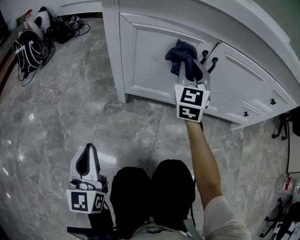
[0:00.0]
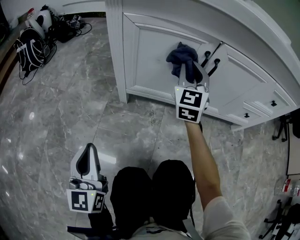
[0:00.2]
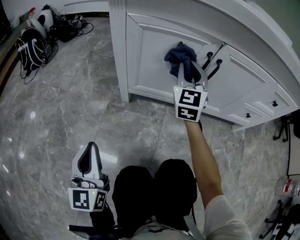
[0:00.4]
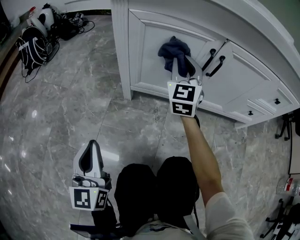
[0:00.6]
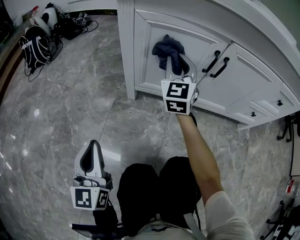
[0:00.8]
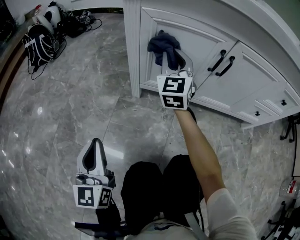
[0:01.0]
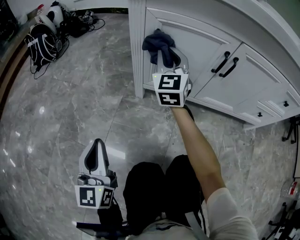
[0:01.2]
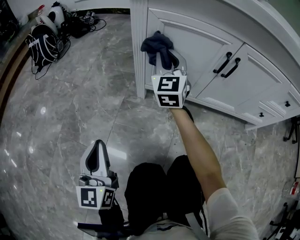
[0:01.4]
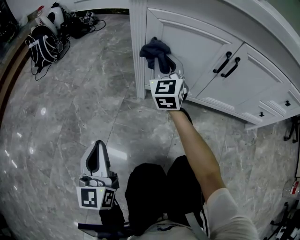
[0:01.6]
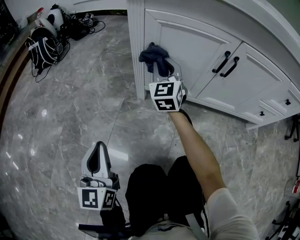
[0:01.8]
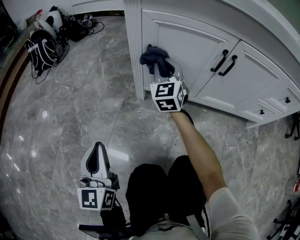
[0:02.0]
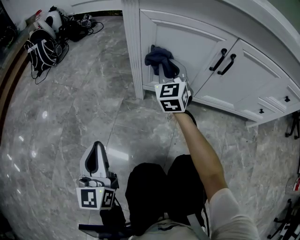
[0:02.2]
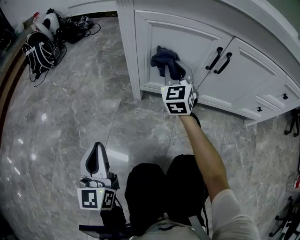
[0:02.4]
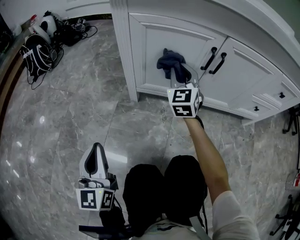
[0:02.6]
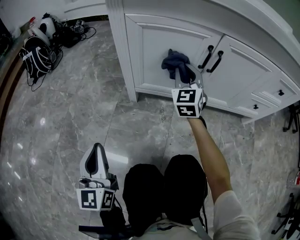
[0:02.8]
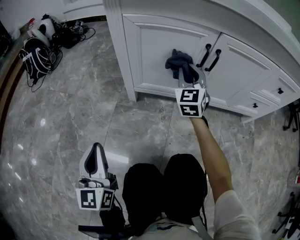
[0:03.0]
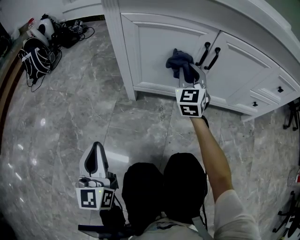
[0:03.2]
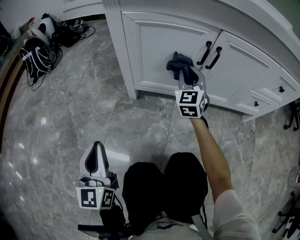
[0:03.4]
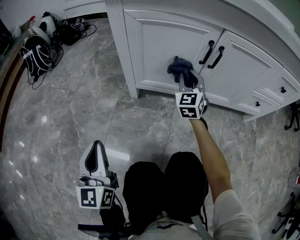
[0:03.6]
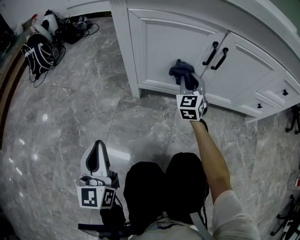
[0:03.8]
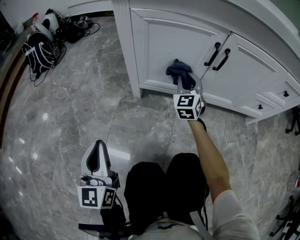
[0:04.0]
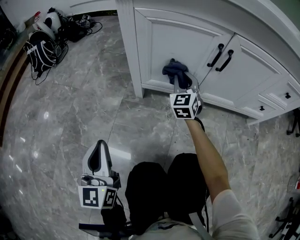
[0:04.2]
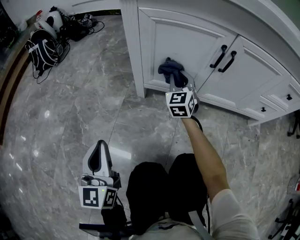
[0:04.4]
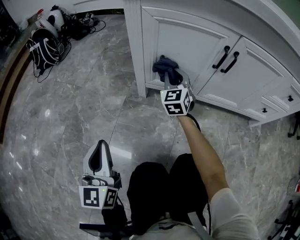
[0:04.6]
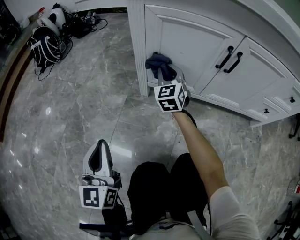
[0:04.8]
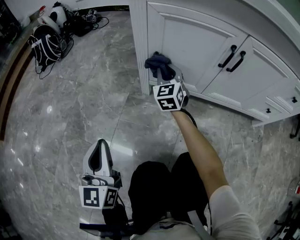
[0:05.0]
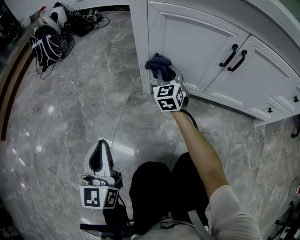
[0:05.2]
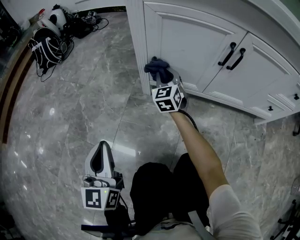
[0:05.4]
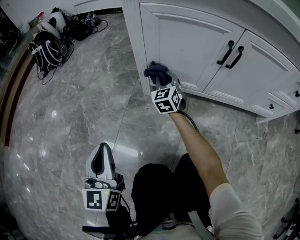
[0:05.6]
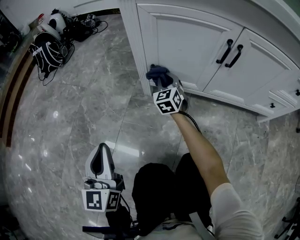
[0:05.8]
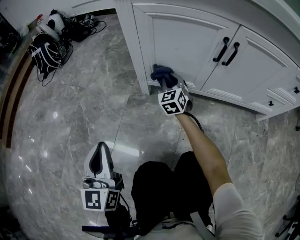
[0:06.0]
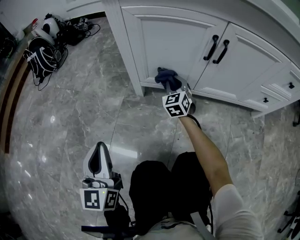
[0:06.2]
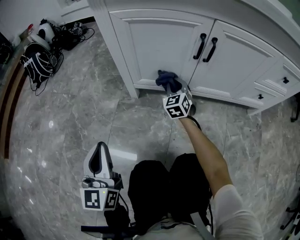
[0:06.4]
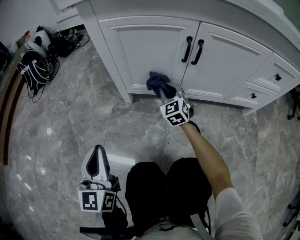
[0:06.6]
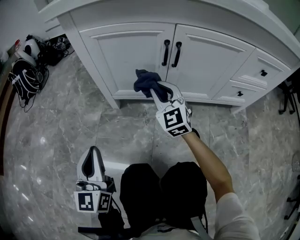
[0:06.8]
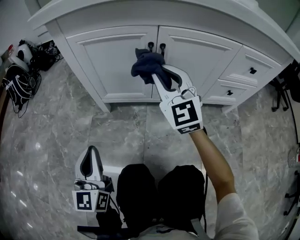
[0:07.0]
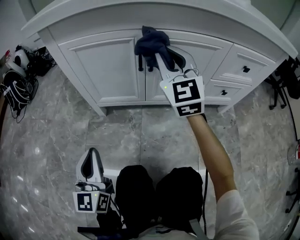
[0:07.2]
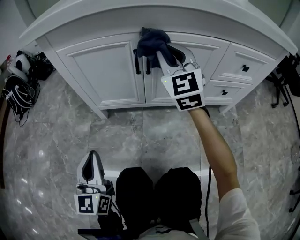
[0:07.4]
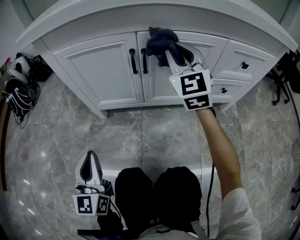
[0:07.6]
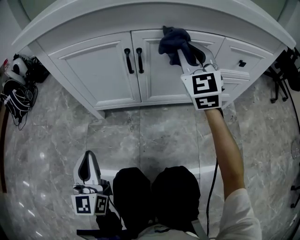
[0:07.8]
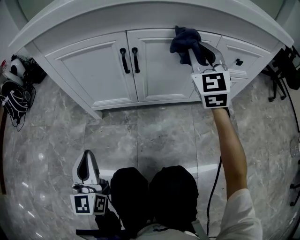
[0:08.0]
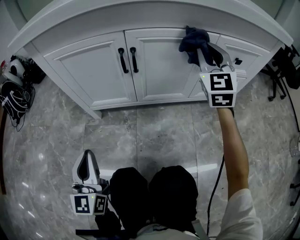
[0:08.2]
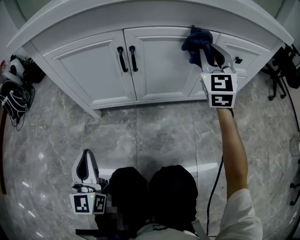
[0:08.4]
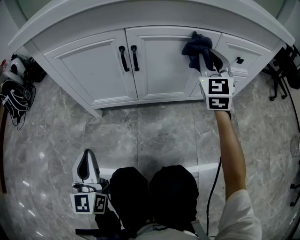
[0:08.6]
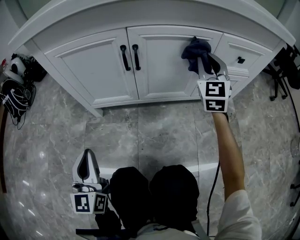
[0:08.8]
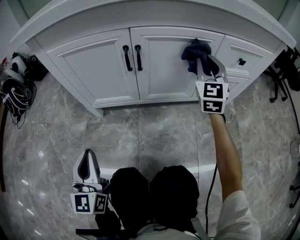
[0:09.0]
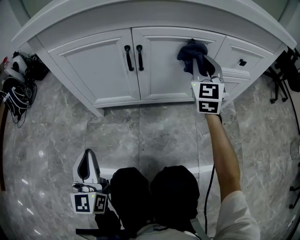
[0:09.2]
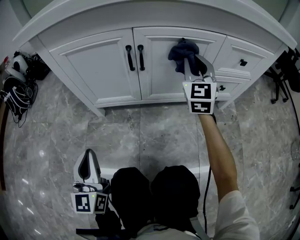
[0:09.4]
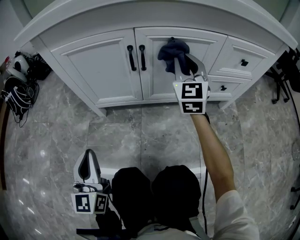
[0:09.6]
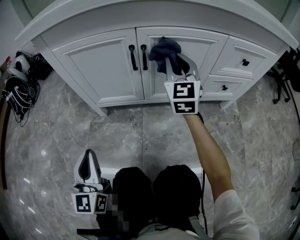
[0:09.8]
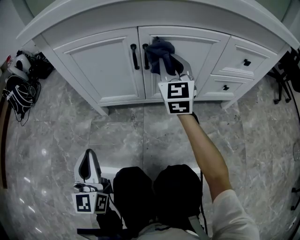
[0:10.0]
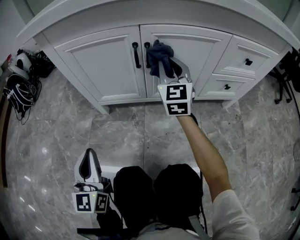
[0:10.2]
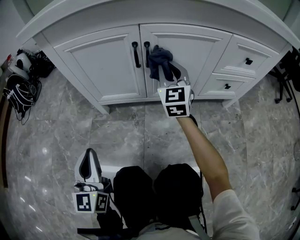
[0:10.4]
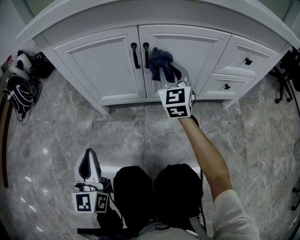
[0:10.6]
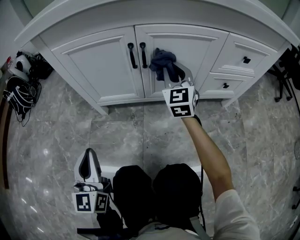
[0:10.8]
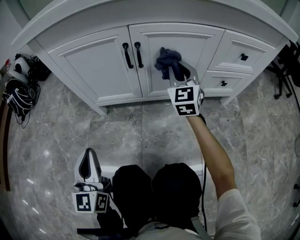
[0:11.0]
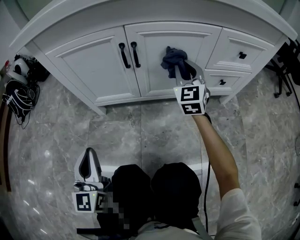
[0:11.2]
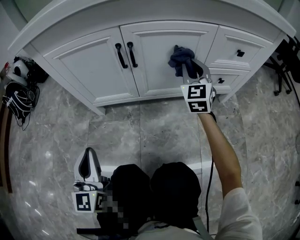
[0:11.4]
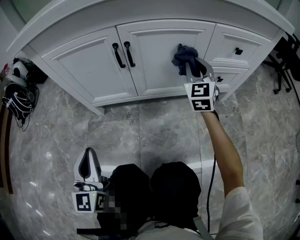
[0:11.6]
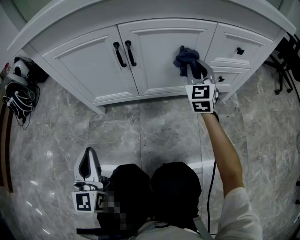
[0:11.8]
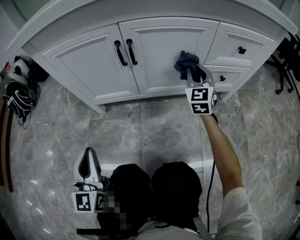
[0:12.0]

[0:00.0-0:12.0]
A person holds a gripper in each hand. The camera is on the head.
0:00.0 to 0:01.6: The right gripper heads to the left, covering approximately 15 cm.
0:01.6 to 0:03.0: The right gripper shifts about 15 cm to the right.
0:03.0 to 0:04.4: The right gripper shifts about 10 cm downward and to the left.
0:04.4 to 0:06.0: The right gripper goes about 10 cm downward.
0:06.0 to 0:07.6: The left gripper goes roughly 15 cm to the right. The right gripper heads upward and to the right, covering some 40 cm, and swivels roughly 20 degrees.
0:07.6 to 0:09.0: The right gripper shifts approximately 15 cm to the right and downward.
0:09.0 to 0:10.4: The right gripper heads to the left, covering approximately 15 cm.
0:10.4 to 0:12.0: The right gripper heads to the right, covering about 15 cm.

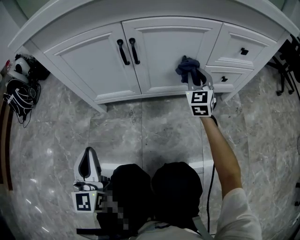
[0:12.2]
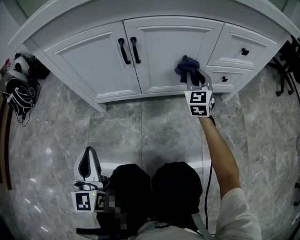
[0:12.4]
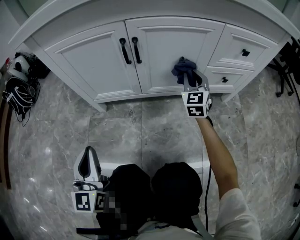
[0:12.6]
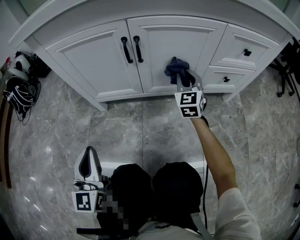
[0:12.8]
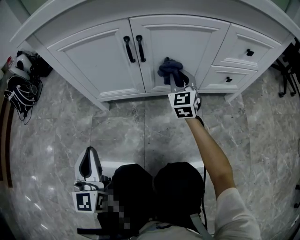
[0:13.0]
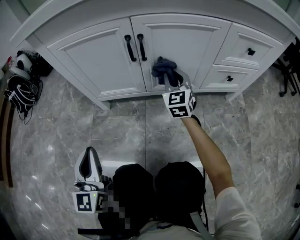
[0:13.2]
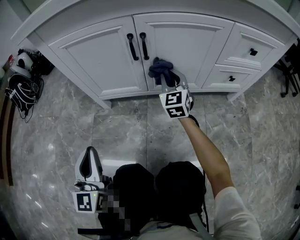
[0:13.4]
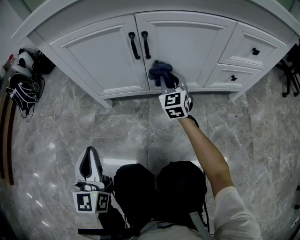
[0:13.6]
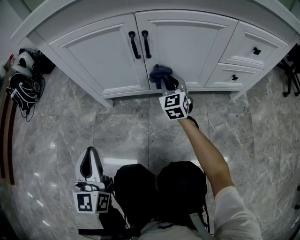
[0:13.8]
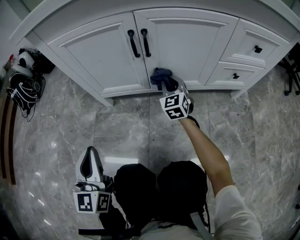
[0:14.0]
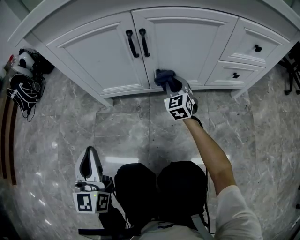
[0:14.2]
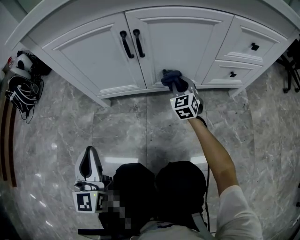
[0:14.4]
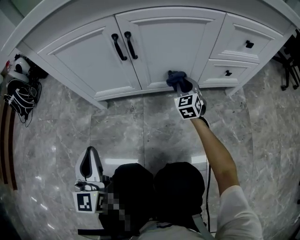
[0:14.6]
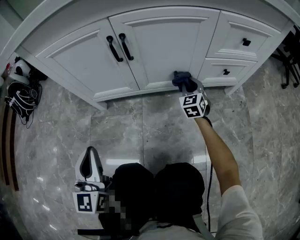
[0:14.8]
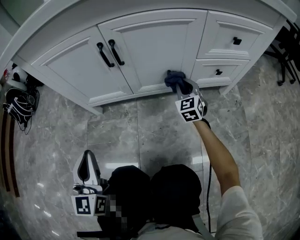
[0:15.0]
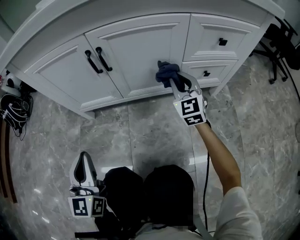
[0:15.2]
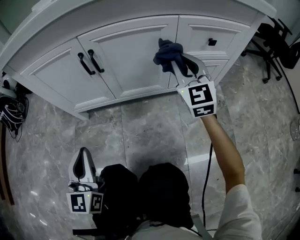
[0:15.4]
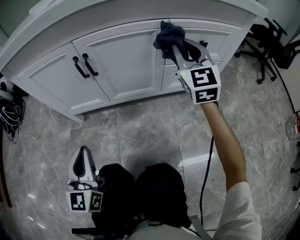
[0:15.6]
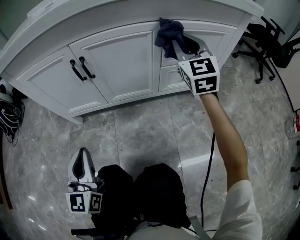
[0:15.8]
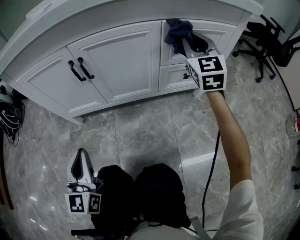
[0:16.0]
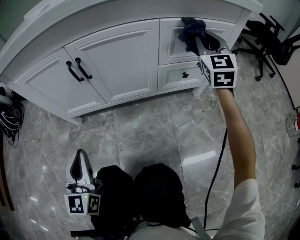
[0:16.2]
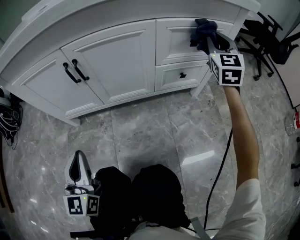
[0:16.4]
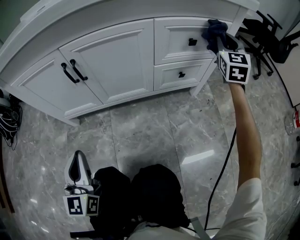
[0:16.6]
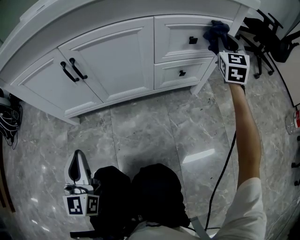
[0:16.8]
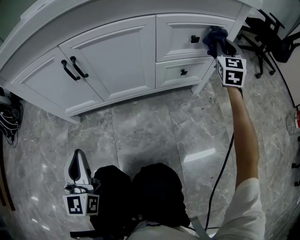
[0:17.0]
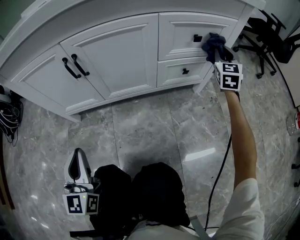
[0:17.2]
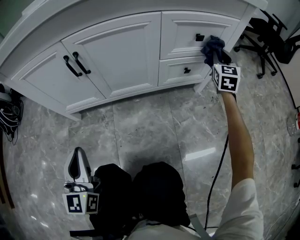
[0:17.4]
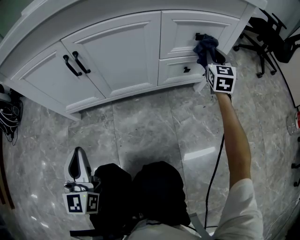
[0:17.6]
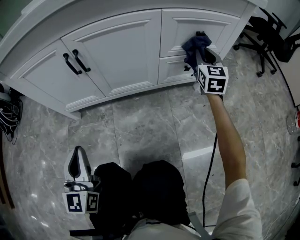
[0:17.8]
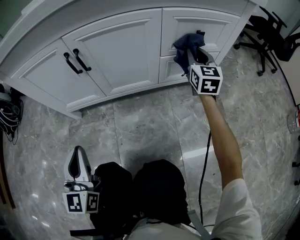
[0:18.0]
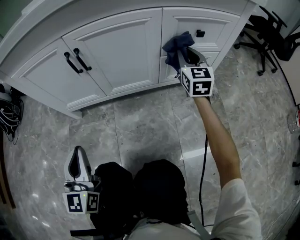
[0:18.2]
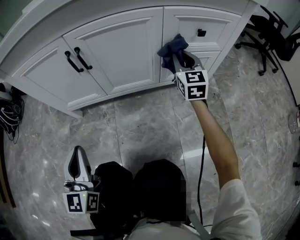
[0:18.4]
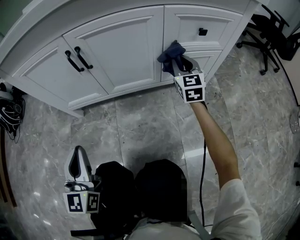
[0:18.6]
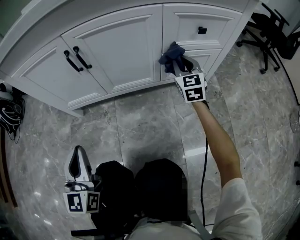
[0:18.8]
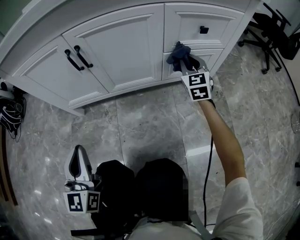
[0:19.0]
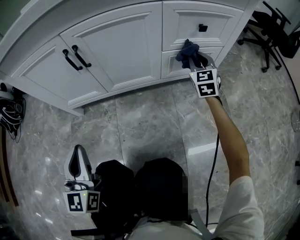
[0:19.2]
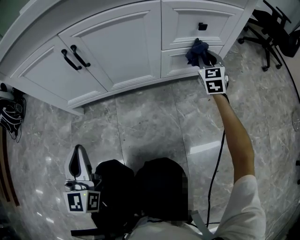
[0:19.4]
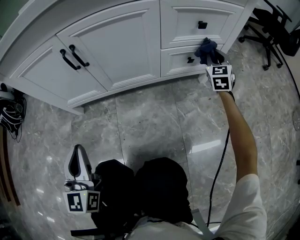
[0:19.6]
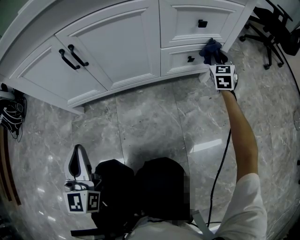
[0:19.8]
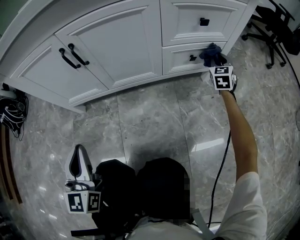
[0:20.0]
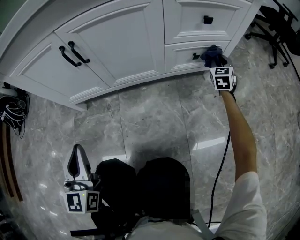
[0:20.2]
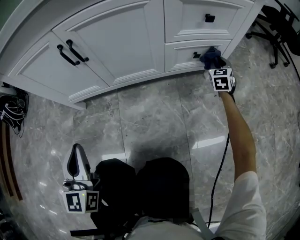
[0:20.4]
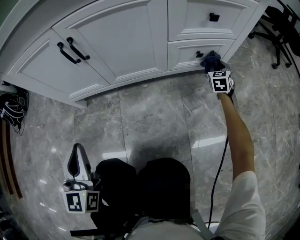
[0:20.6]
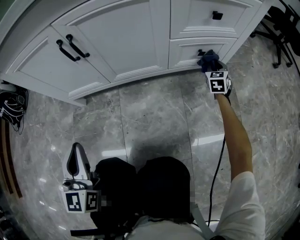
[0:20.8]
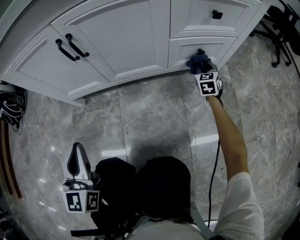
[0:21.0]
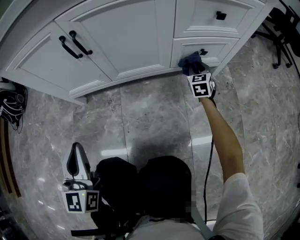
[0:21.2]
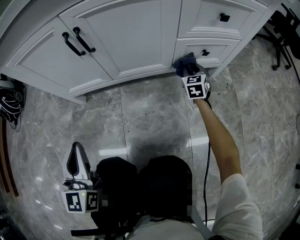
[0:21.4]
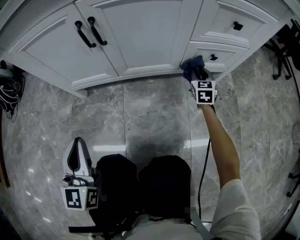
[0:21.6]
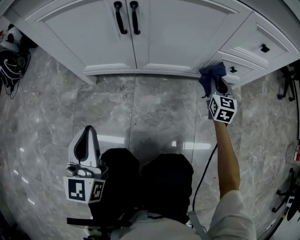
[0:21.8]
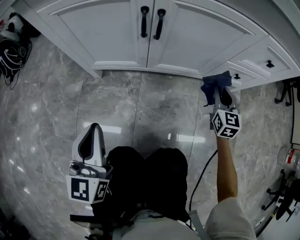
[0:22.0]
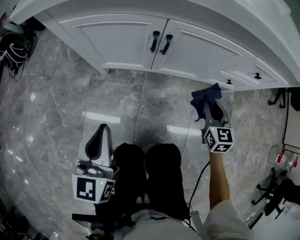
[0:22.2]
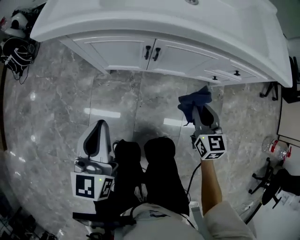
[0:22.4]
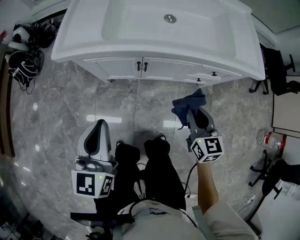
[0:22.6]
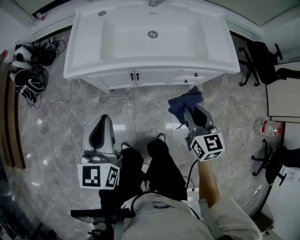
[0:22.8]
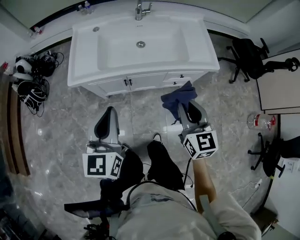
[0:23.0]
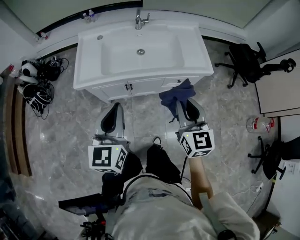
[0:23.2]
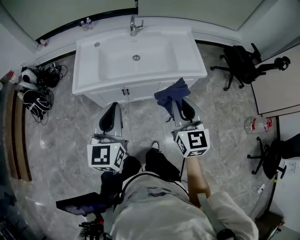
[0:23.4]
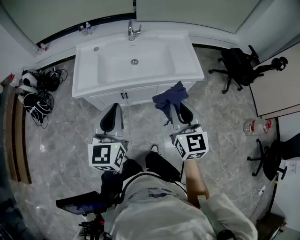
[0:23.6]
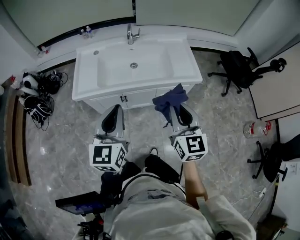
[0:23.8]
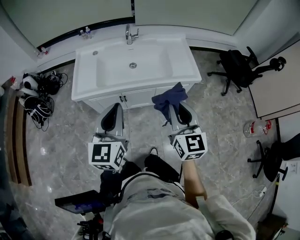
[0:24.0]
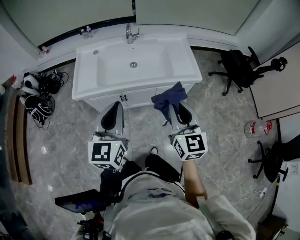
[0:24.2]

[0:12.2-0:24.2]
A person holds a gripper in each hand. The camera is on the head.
0:12.2 to 0:13.8: The right gripper shifts about 15 cm to the left and downward.
0:13.8 to 0:15.2: The left gripper shifts about 10 cm to the right, while the right gripper goes some 20 cm to the right and upward.
0:15.2 to 0:16.6: The right gripper heads to the right and upward, covering some 35 cm, and changes its angle by some 30 degrees. Meanwhile the left gripper goes roughly 5 cm to the right.
0:16.6 to 0:18.2: The right gripper travels to the left and downward by some 20 cm, and swivels some 20 degrees.
0:18.2 to 0:19.8: The right gripper moves to the right and downward, approximately 20 cm, and turns by roughly 20 degrees.
0:19.8 to 0:21.2: The right gripper goes some 20 cm downward and to the left.
0:21.2 to 0:22.6: The two grippers go approximately 40 cm upward. The right gripper swivels about 20 degrees.
0:22.6 to 0:24.2: The left gripper moves upward and to the right, approximately 35 cm. The right gripper travels upward by approximately 40 cm, and changes its angle by approximately 20 degrees.
